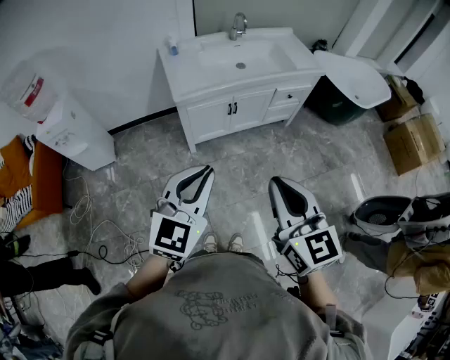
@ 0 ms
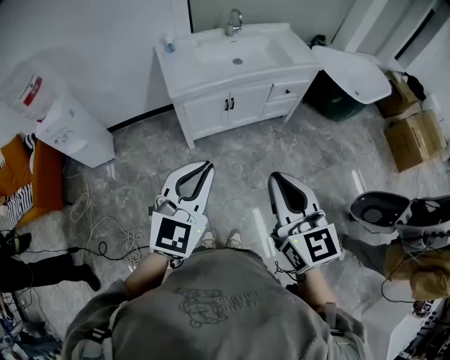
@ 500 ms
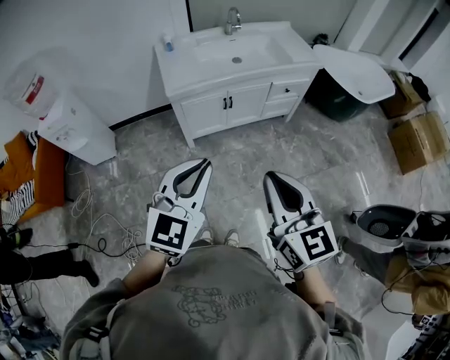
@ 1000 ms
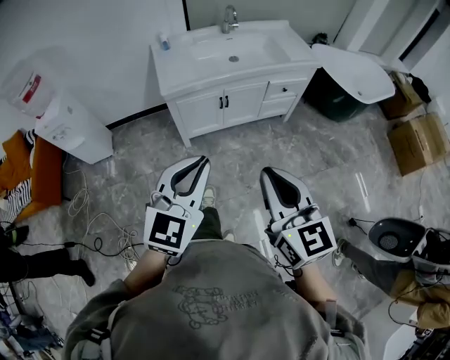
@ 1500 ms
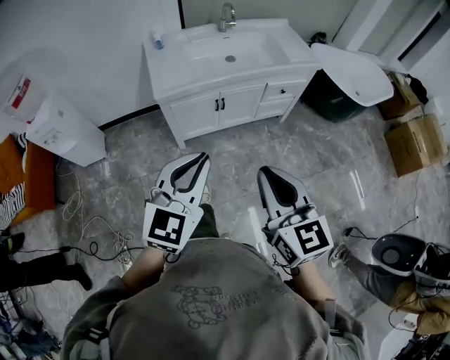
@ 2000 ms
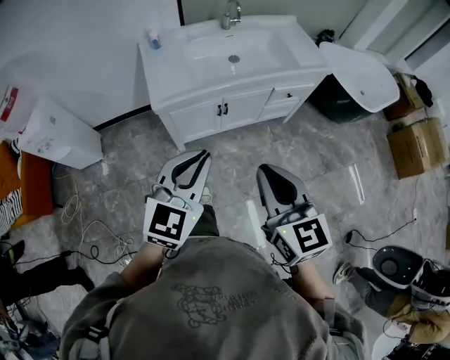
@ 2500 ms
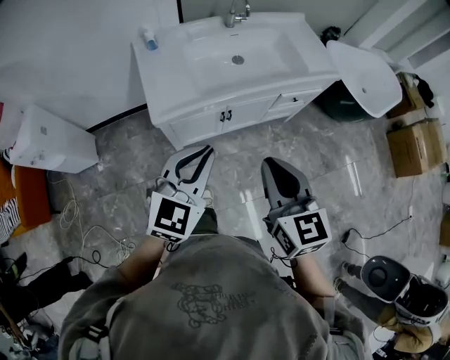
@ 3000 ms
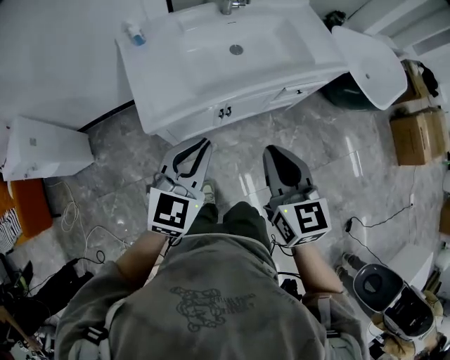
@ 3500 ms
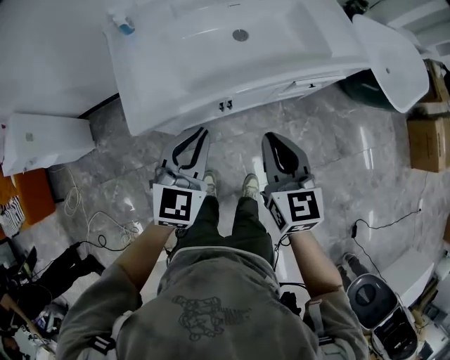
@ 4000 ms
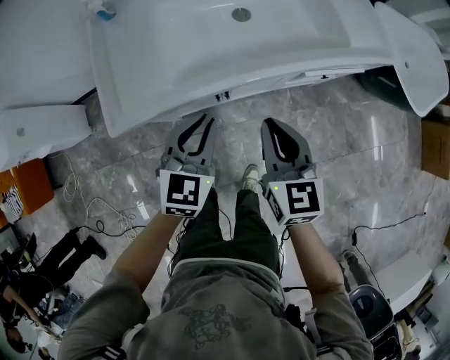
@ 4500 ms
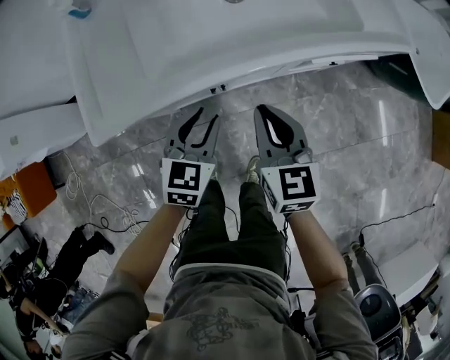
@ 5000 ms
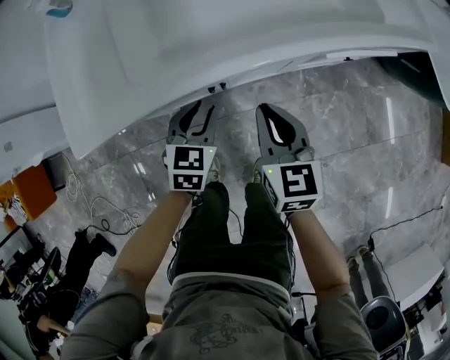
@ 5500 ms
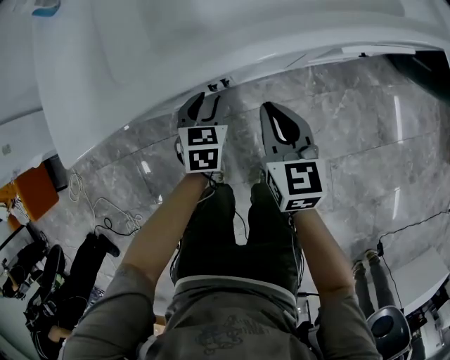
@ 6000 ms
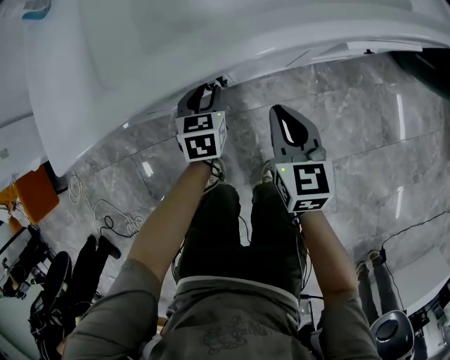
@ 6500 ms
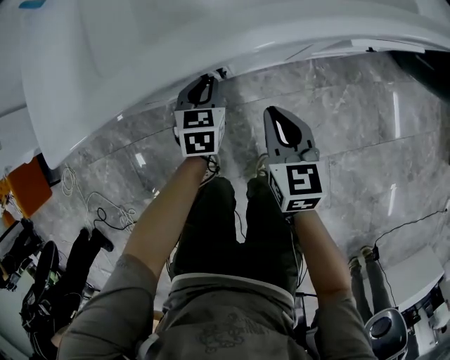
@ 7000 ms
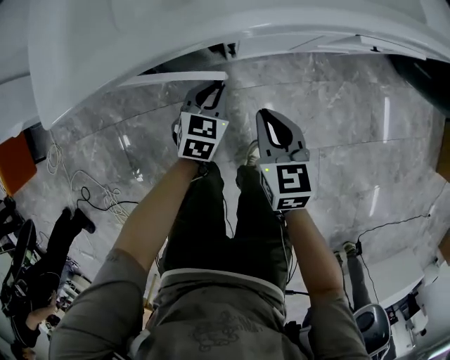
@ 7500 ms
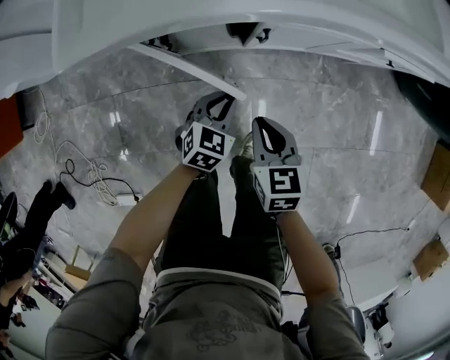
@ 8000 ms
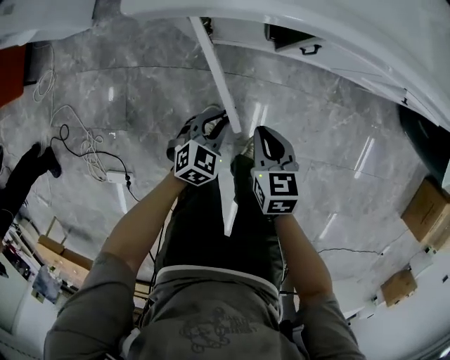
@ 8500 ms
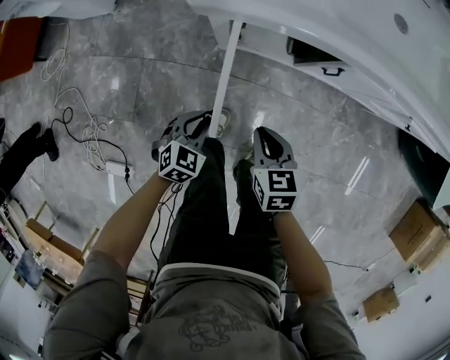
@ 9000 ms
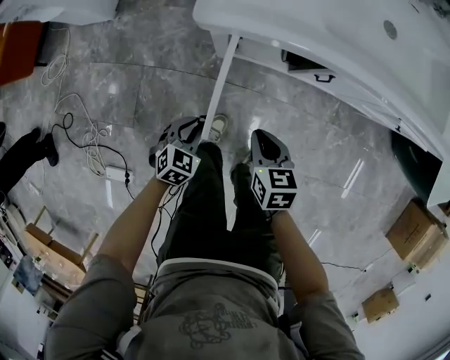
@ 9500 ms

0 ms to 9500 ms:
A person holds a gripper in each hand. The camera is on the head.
0 ms to 2000 ms: The left gripper travels to the right and forward by some 10 cm, while the right gripper goes roughly 10 cm forward and to the right.
2000 ms to 4000 ms: The right gripper heads forward, covering approximately 40 cm; the left gripper heads forward and downward, covering some 40 cm.
4000 ms to 5500 ms: The left gripper shifts about 30 cm downward, turns by approximately 20 degrees, and opens its fingers. Meanwhile the right gripper heads downward and forward, covering roughly 25 cm.
5500 ms to 7500 ms: The right gripper shifts roughly 15 cm downward and backward; the left gripper shifts some 10 cm downward.
7500 ms to 9500 ms: The left gripper travels to the left and backward by roughly 30 cm. The right gripper goes roughly 20 cm to the left and backward, and rotates about 20 degrees.

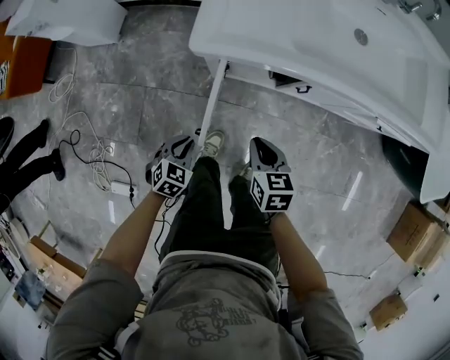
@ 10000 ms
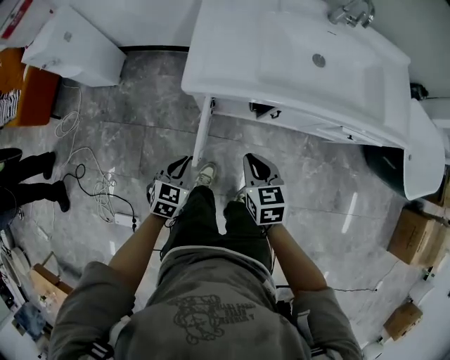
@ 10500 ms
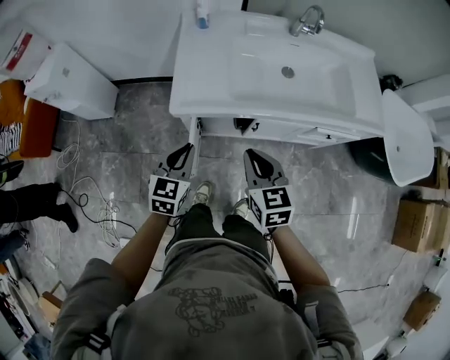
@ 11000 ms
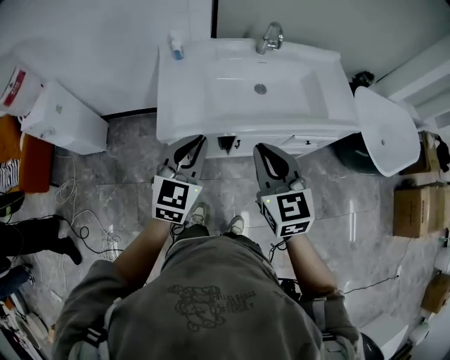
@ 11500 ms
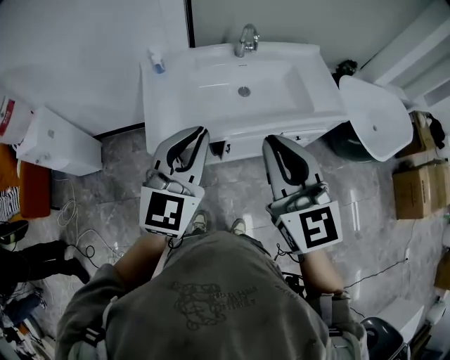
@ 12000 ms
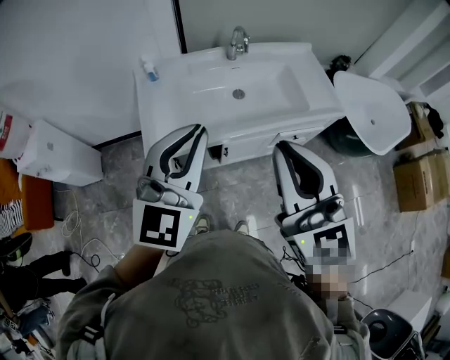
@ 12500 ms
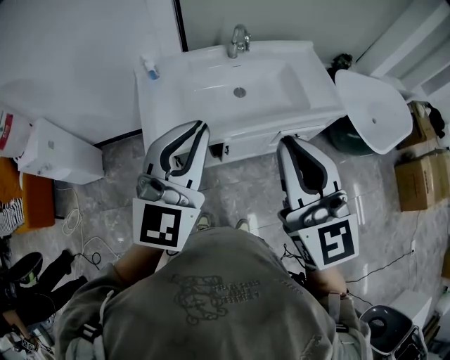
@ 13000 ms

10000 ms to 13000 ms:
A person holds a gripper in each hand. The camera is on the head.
10000 ms to 11500 ms: Both grippers move upward, some 40 cm. The right gripper rotates about 40 degrees; the left gripper tilts its fingers about 40 degrees upward.
11500 ms to 13000 ms: The two grippers go approximately 15 cm upward. The right gripper changes its angle by approximately 20 degrees; the left gripper swivels about 20 degrees.

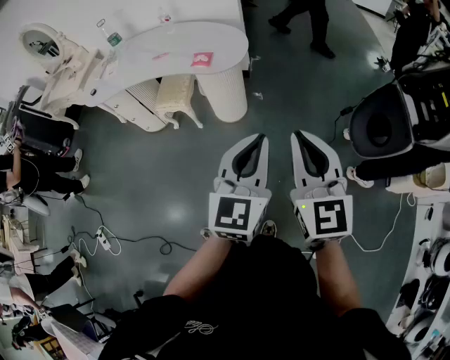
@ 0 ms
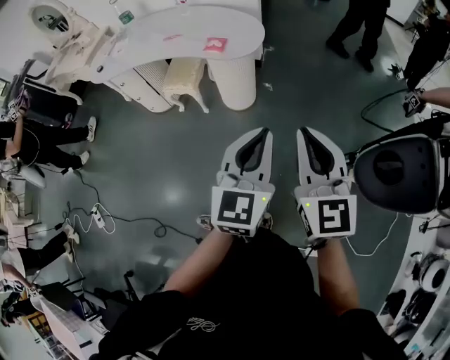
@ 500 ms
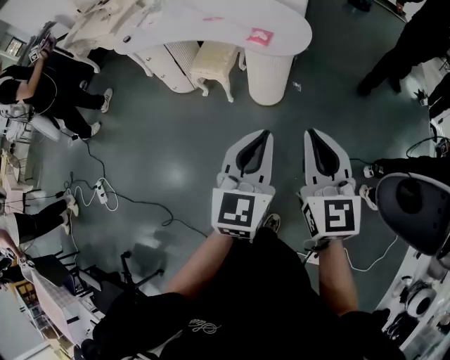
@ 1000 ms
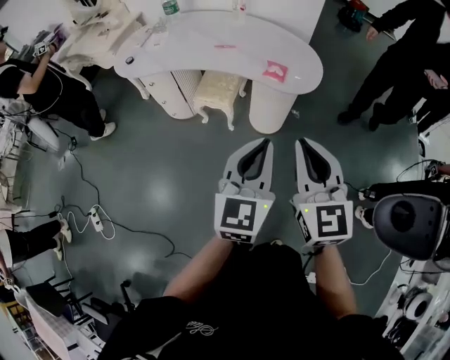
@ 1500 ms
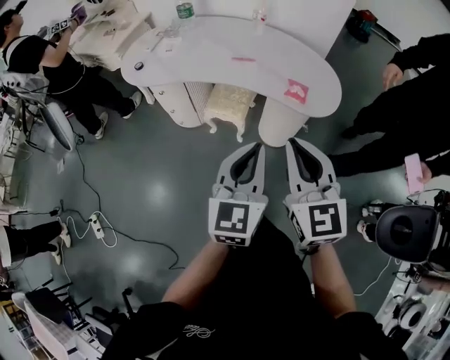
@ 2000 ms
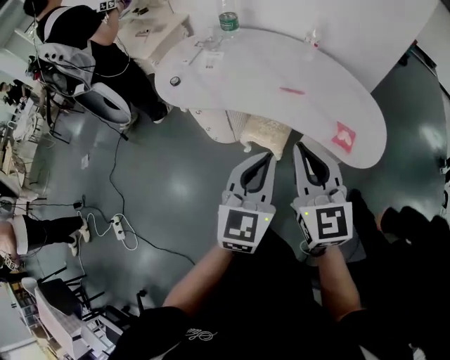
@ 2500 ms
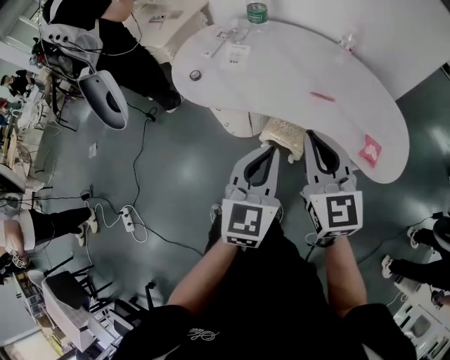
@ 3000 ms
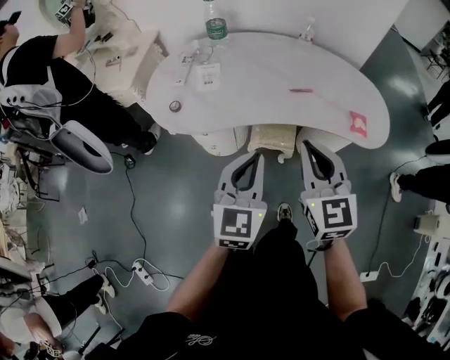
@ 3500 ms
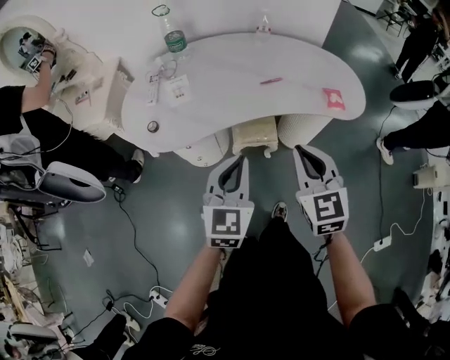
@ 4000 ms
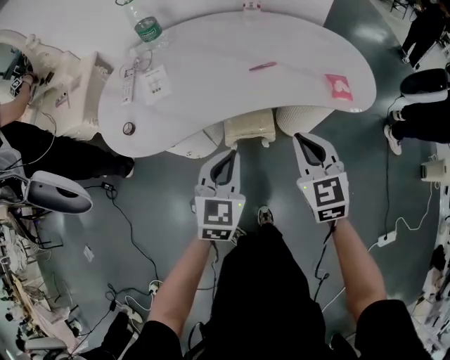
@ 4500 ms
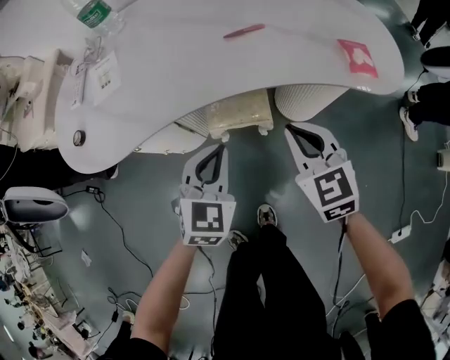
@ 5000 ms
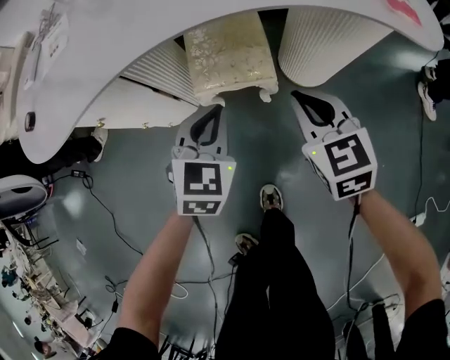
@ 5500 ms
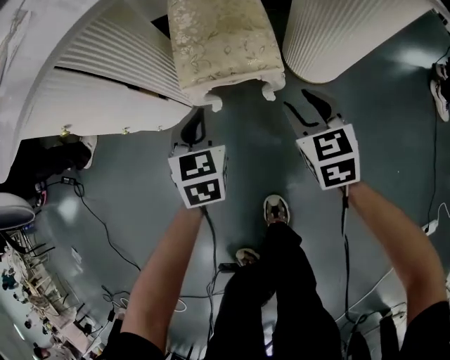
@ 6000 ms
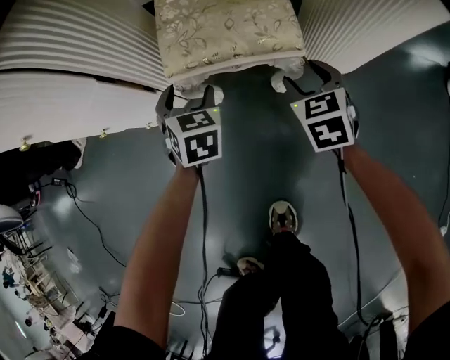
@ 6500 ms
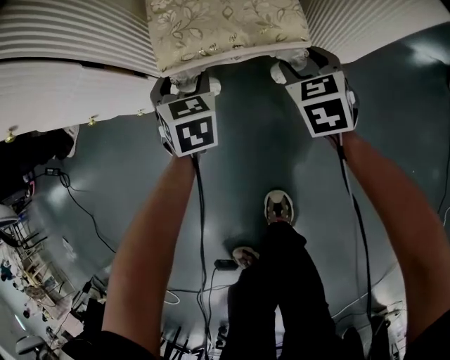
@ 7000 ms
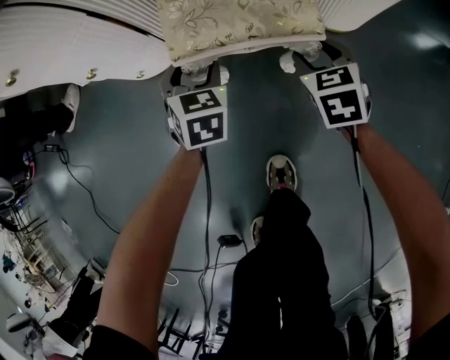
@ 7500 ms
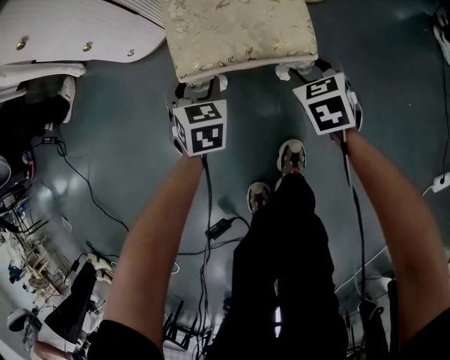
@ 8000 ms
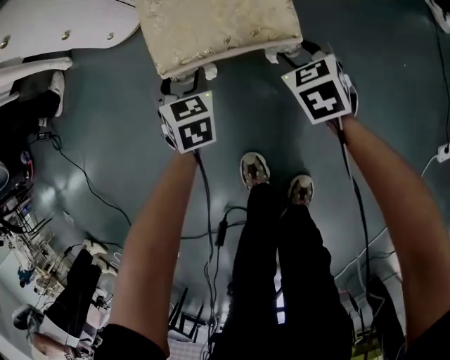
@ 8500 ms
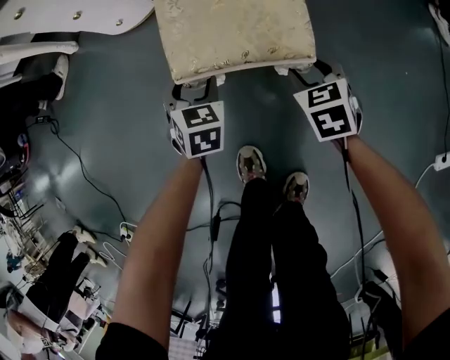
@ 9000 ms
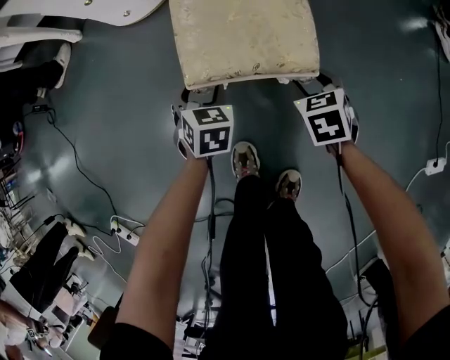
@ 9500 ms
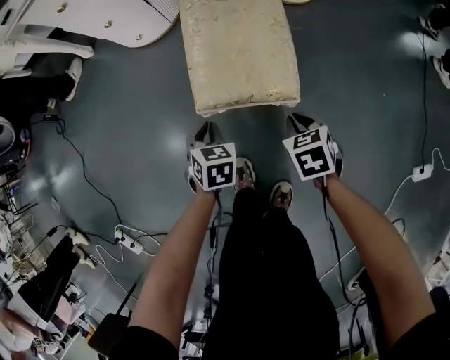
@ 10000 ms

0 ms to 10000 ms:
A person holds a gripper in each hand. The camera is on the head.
0 ms to 2000 ms: The two grippers travel together, to the left and forward, about 40 cm.
2000 ms to 4000 ms: The right gripper shifts by some 30 cm, and rotates roughly 30 degrees, while the left gripper ends up roughly 40 cm from where it was, and swivels roughly 20 degrees.
4000 ms to 6000 ms: Both grippers move downward, some 60 cm. The right gripper turns by roughly 20 degrees, and opens up. The left gripper swivels about 30 degrees.
6000 ms to 8000 ms: The grippers both shift backward and downward by approximately 25 cm. The left gripper opens its fingers.
8000 ms to 10000 ms: Both grippers travel together backward, some 20 cm. The left gripper closes. Meanwhile the right gripper closes its fingers.

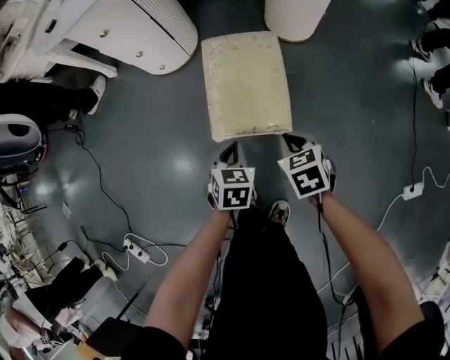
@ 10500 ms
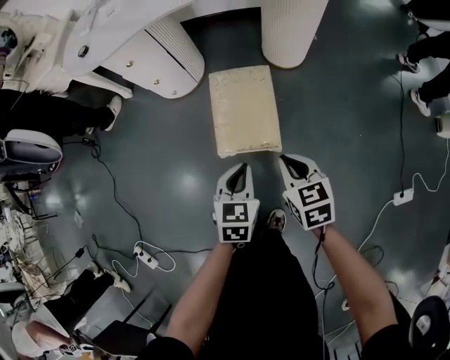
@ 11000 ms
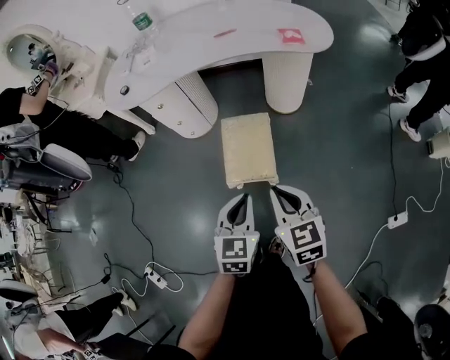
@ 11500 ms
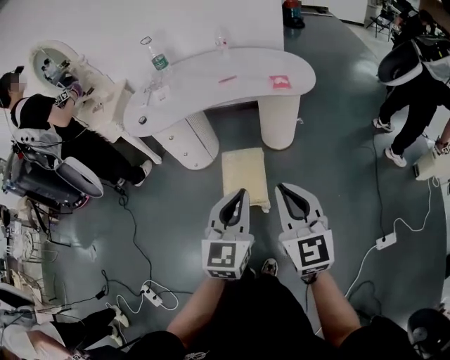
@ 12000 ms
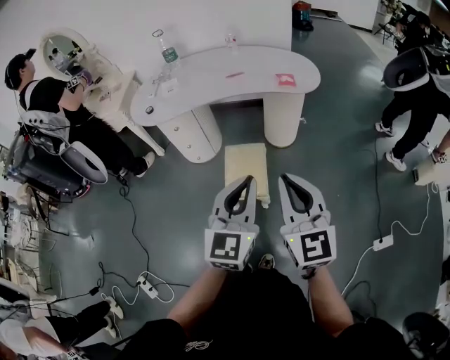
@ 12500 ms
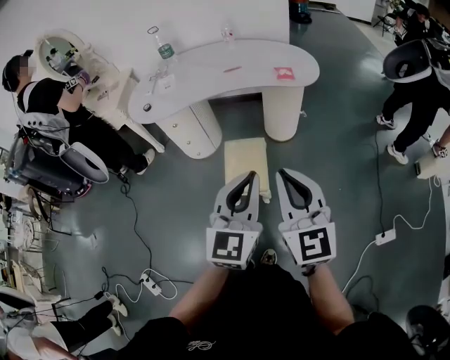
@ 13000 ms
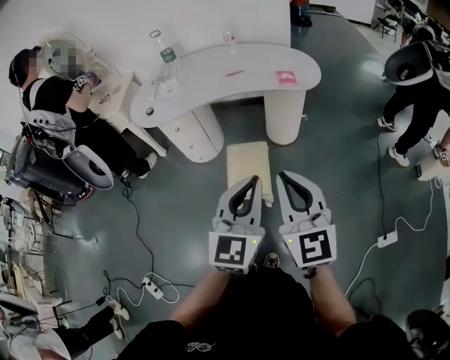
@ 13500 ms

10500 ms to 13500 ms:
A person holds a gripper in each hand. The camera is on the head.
10500 ms to 12000 ms: Both grippers travel together upward, approximately 60 cm. The right gripper tips its fingers upward by some 50 degrees; the left gripper tips its fingers upward by about 40 degrees.
12000 ms to 13500 ms: The right gripper changes place by some 5 cm, while the left gripper ends up some 5 cm from where it was.
